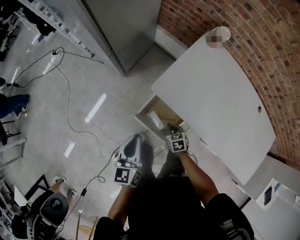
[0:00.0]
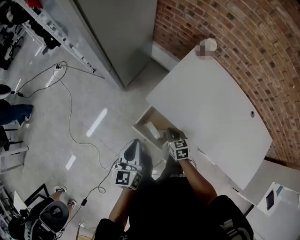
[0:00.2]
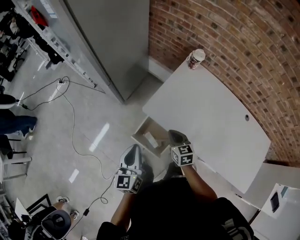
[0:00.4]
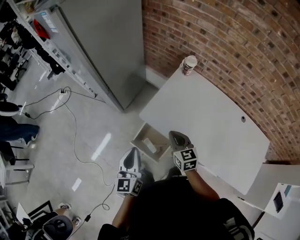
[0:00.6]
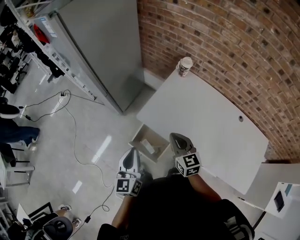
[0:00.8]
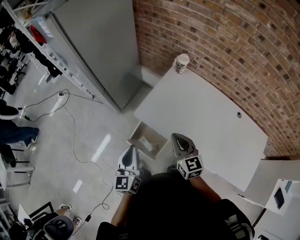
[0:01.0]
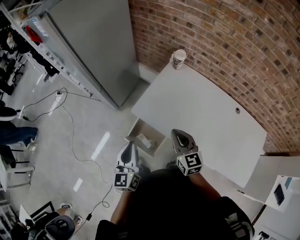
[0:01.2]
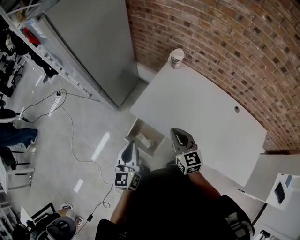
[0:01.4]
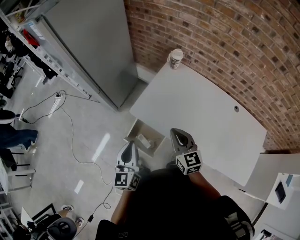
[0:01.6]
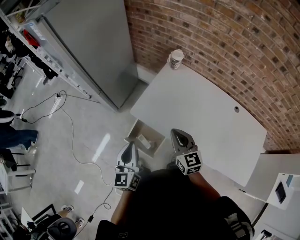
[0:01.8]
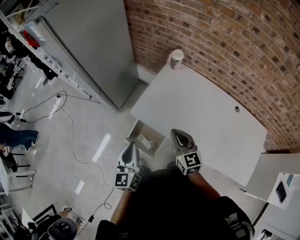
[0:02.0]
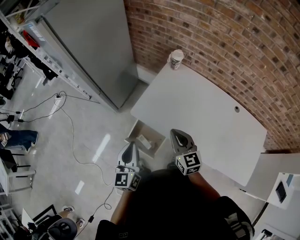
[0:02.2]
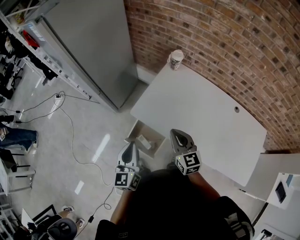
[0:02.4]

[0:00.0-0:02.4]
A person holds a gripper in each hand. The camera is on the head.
0:00.0 to 0:01.2: The right gripper shifts some 35 cm upward, and tilts its fingers approximately 40 degrees upward. The left gripper shifts approximately 15 cm upward and to the right.
0:01.2 to 0:02.4: The two grippers keep their place.

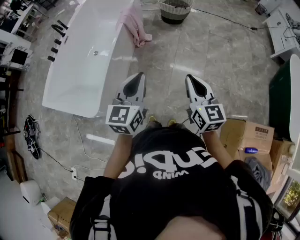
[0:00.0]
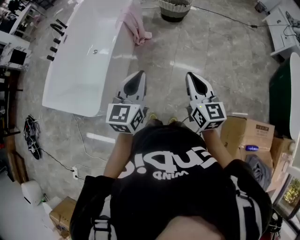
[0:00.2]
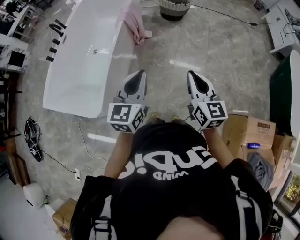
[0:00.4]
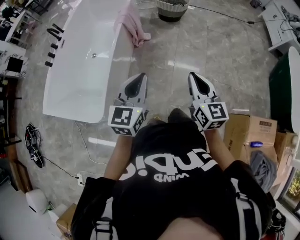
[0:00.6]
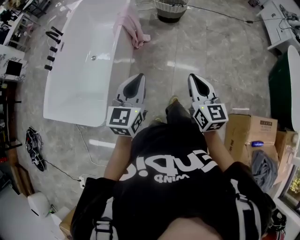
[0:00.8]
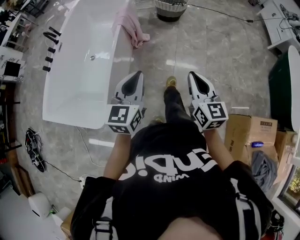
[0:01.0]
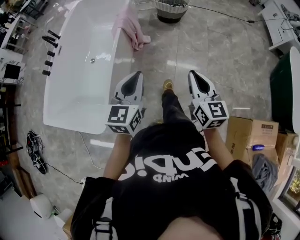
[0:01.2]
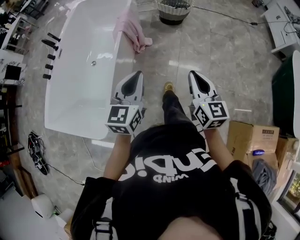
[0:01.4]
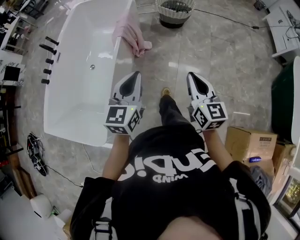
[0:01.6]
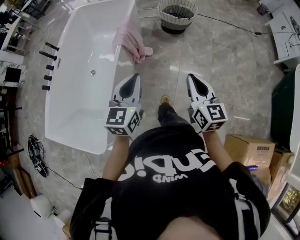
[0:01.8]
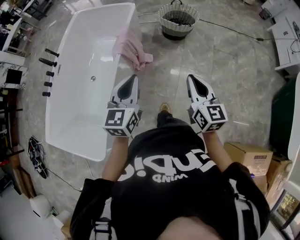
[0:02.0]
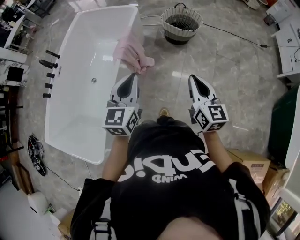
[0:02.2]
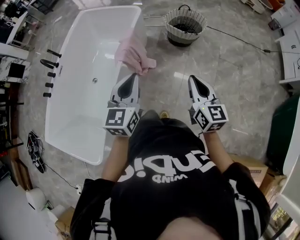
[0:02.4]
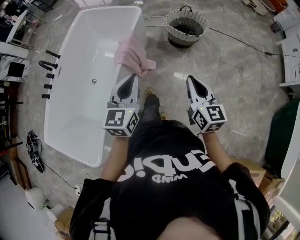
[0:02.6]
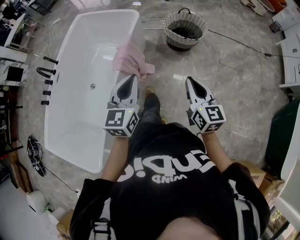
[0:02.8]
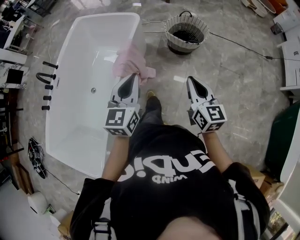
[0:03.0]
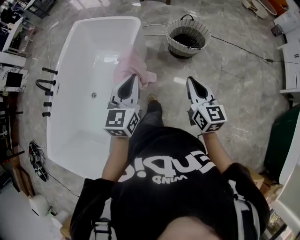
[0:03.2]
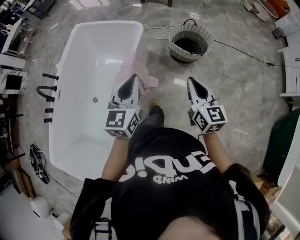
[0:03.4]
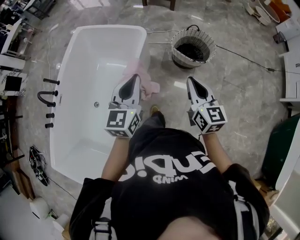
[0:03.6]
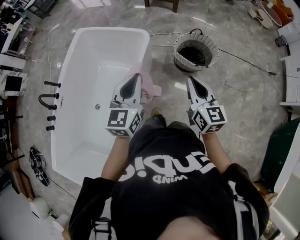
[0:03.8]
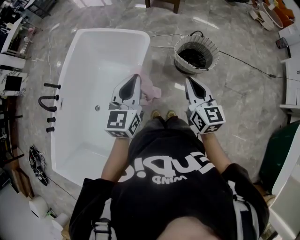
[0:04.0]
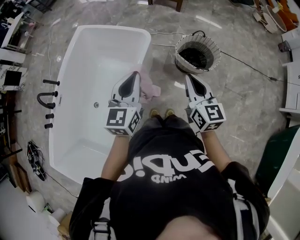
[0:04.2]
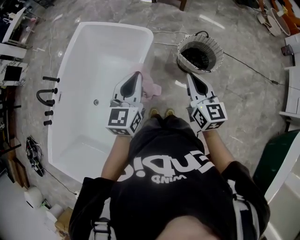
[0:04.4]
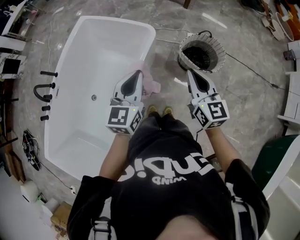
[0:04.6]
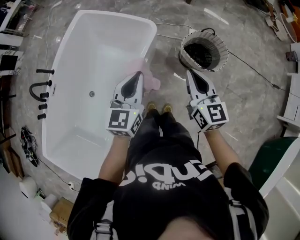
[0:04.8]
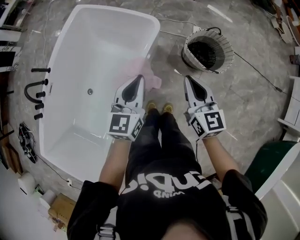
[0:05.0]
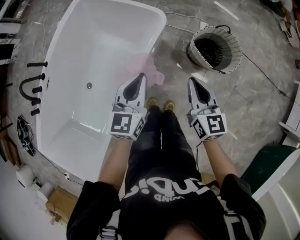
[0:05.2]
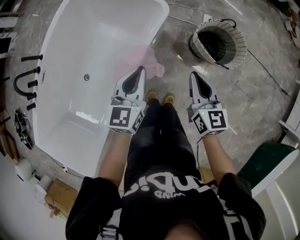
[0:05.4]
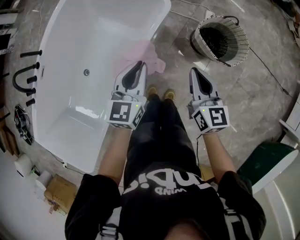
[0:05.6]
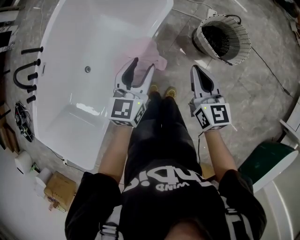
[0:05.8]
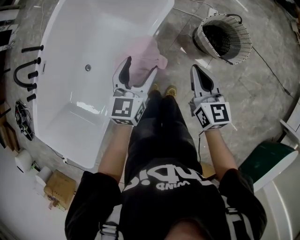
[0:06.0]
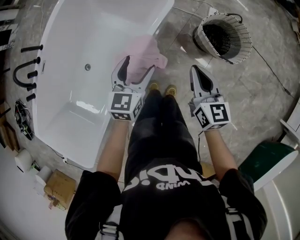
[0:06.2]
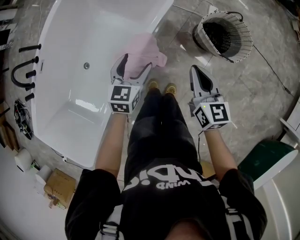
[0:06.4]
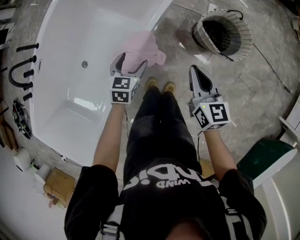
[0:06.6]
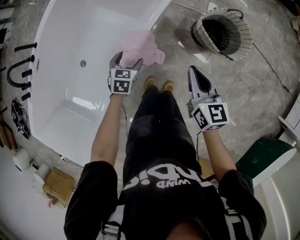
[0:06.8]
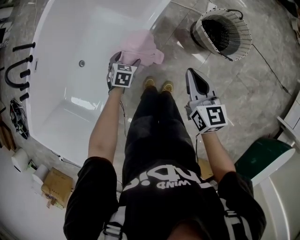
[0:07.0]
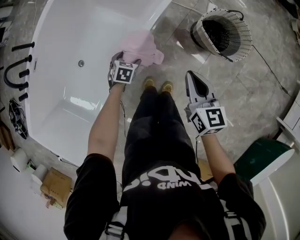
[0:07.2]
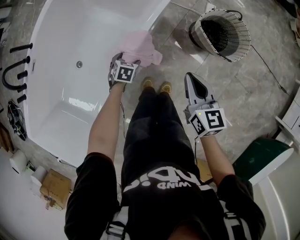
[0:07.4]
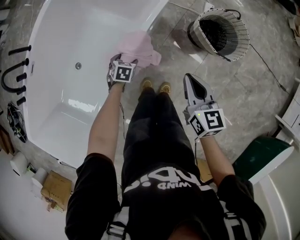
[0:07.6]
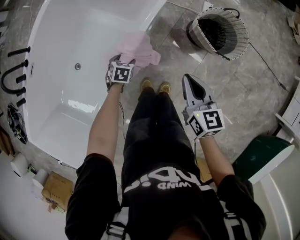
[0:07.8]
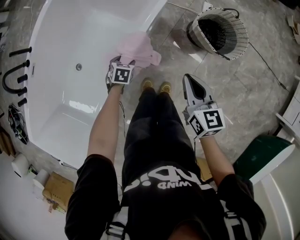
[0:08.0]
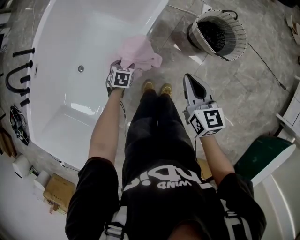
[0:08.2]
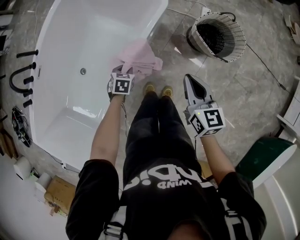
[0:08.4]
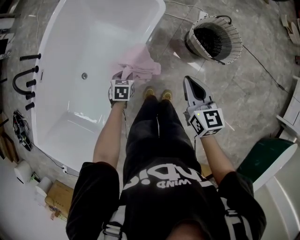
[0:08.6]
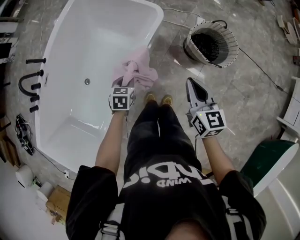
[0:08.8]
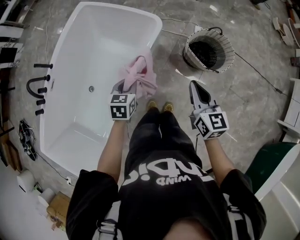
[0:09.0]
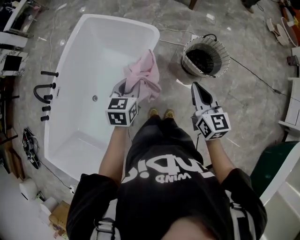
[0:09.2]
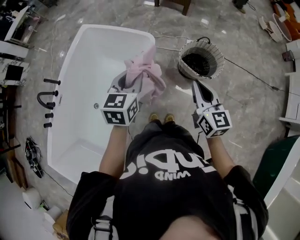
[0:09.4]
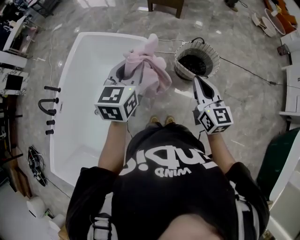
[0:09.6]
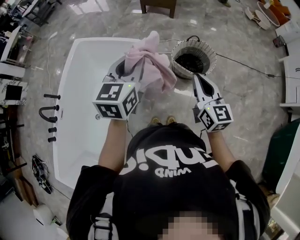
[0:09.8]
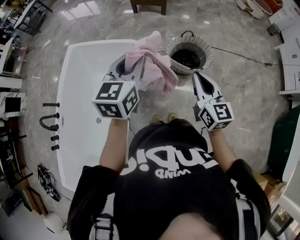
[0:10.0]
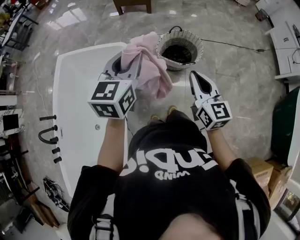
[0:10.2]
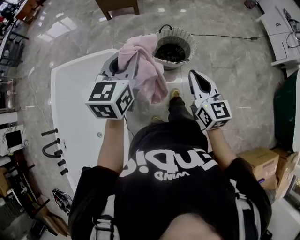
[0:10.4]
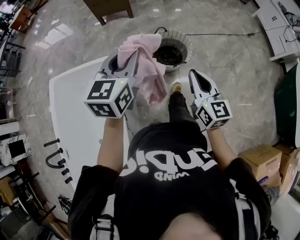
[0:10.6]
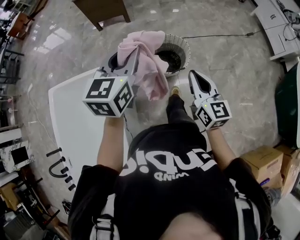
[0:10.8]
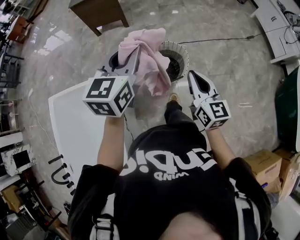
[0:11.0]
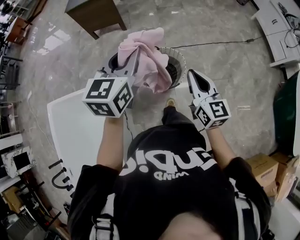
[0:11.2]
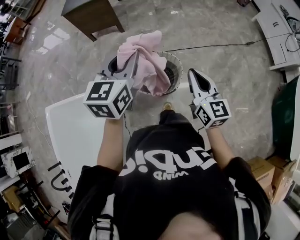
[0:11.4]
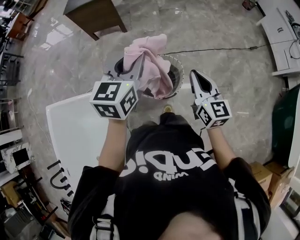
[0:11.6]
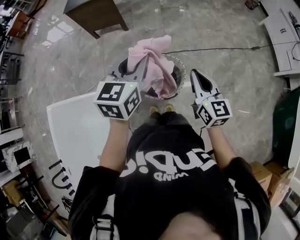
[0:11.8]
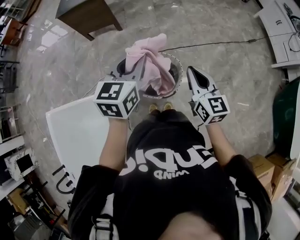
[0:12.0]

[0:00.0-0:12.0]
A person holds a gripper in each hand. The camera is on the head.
0:00.0 to 0:01.6: Both grippers travel together forward, some 20 cm.
0:01.6 to 0:03.0: The grippers both shift forward by about 35 cm.
0:03.0 to 0:04.4: The grippers both shift forward by roughly 30 cm.
0:04.4 to 0:06.0: The right gripper moves downward and forward, some 20 cm. Meanwhile the left gripper moves downward, some 20 cm, and opens.
0:06.0 to 0:07.6: The right gripper travels downward by some 5 cm; the left gripper goes some 30 cm downward, and tilts its fingers approximately 40 degrees downward.
0:07.6 to 0:09.0: The right gripper is displaced upward by roughly 15 cm. The left gripper goes about 30 cm upward, swivels roughly 20 degrees, and closes.
0:09.0 to 0:10.4: The left gripper moves upward, about 30 cm, and rotates about 40 degrees. The right gripper changes place by some 15 cm, and turns by approximately 30 degrees.
0:10.4 to 0:12.0: The right gripper heads forward, covering roughly 35 cm. Meanwhile the left gripper heads forward and to the right, covering approximately 40 cm.

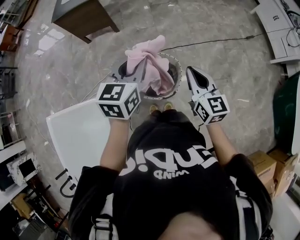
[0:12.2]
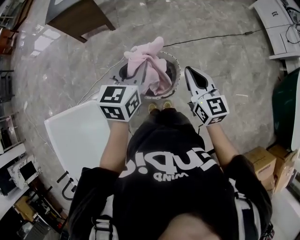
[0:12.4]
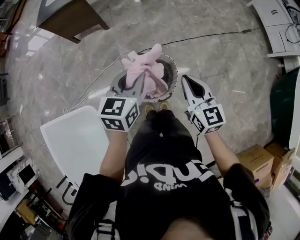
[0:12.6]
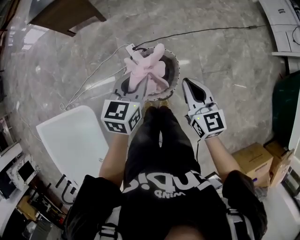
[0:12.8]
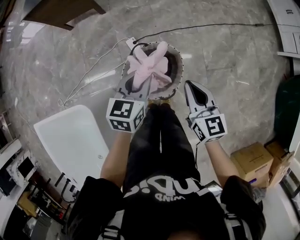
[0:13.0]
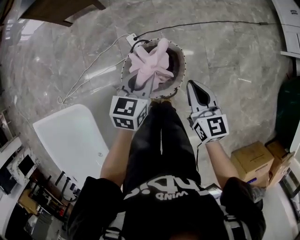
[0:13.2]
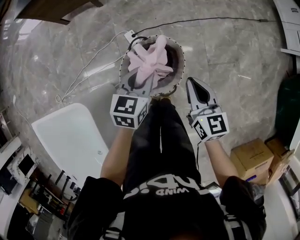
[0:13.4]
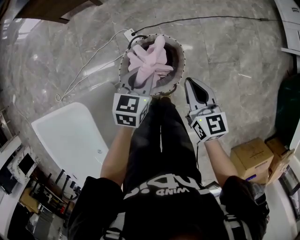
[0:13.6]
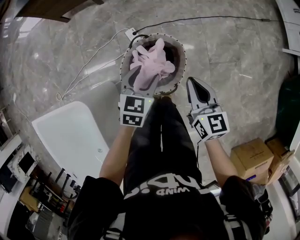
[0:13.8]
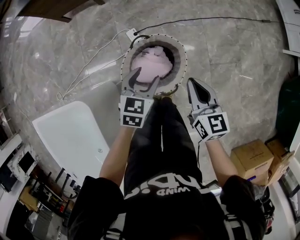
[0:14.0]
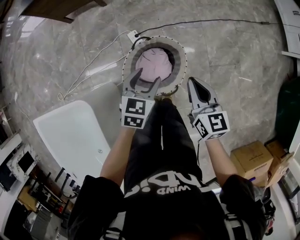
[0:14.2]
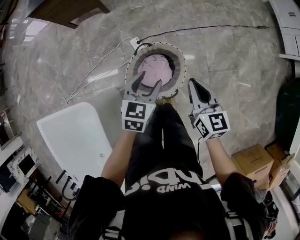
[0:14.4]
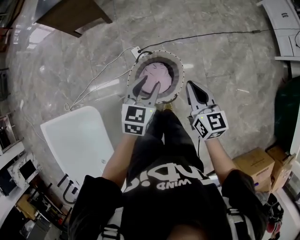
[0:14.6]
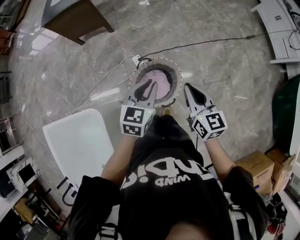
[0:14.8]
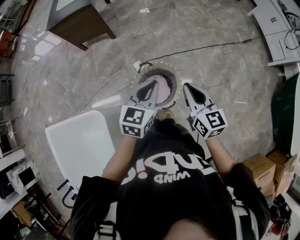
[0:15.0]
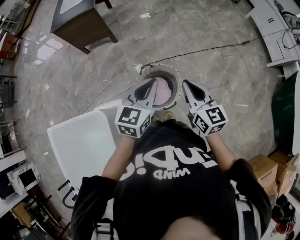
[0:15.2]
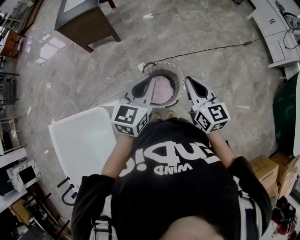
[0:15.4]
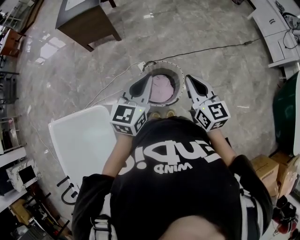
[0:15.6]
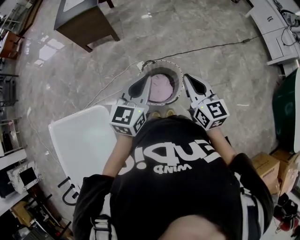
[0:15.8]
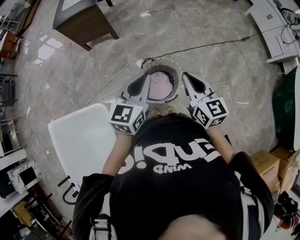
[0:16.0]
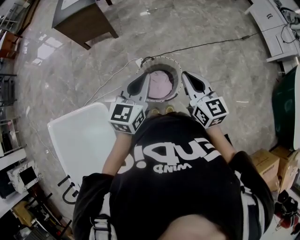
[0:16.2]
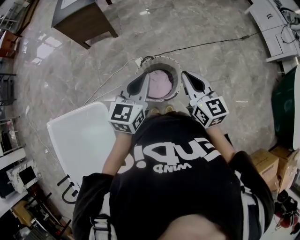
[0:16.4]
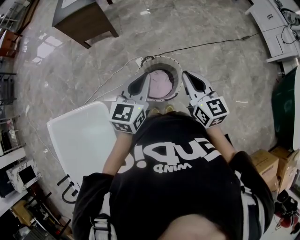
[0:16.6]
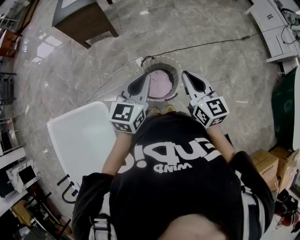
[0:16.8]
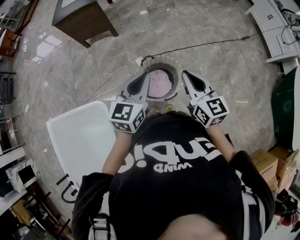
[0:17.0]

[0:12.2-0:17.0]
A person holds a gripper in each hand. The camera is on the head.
0:12.2 to 0:13.8: The right gripper travels downward by roughly 20 cm, while the left gripper is displaced downward by approximately 30 cm, swivels roughly 20 degrees, and opens.
0:13.8 to 0:15.4: Both grippers move upward, about 25 cm. The left gripper changes its angle by about 30 degrees, and closes up.
0:15.4 to 0:17.0: The grippers make only small movements.

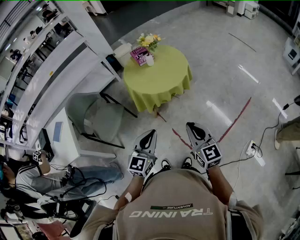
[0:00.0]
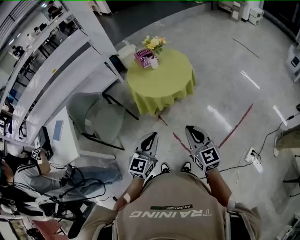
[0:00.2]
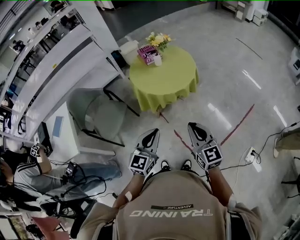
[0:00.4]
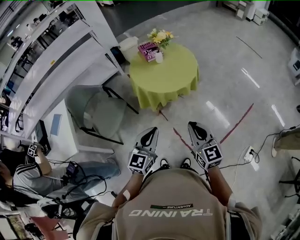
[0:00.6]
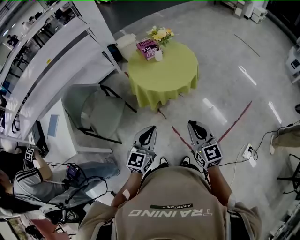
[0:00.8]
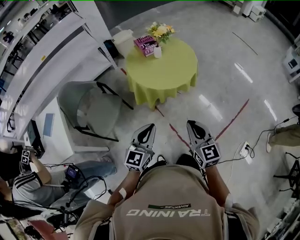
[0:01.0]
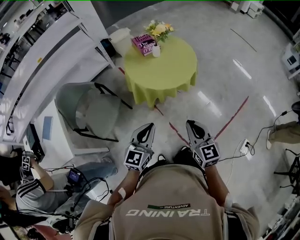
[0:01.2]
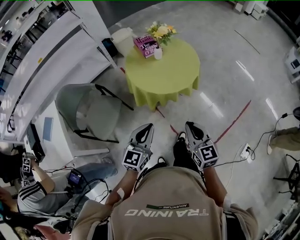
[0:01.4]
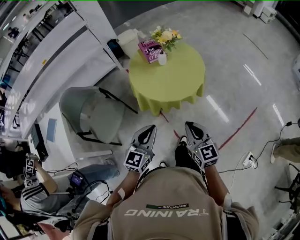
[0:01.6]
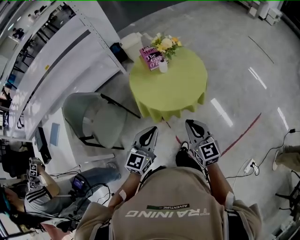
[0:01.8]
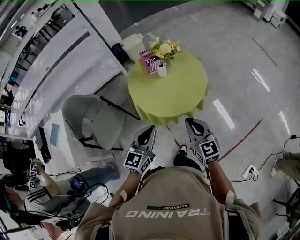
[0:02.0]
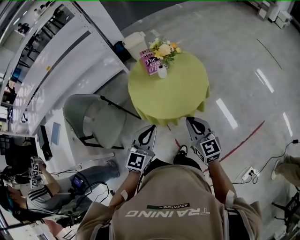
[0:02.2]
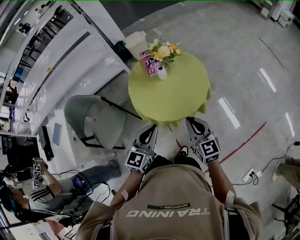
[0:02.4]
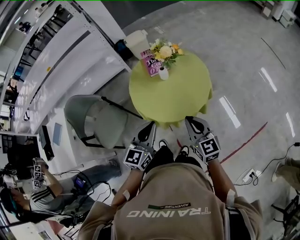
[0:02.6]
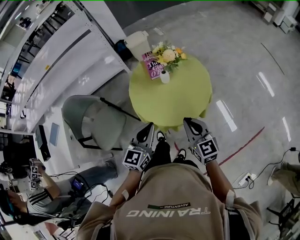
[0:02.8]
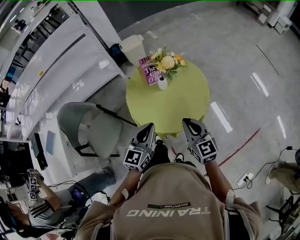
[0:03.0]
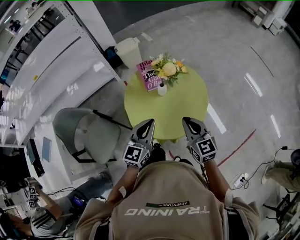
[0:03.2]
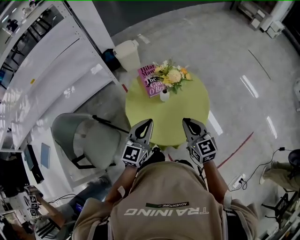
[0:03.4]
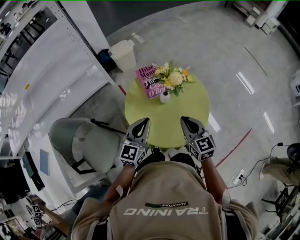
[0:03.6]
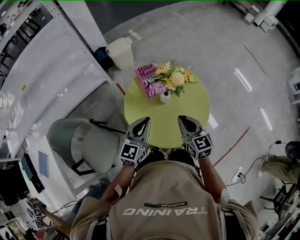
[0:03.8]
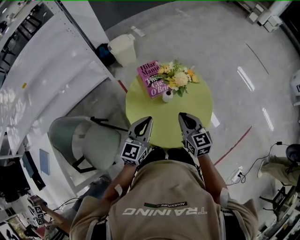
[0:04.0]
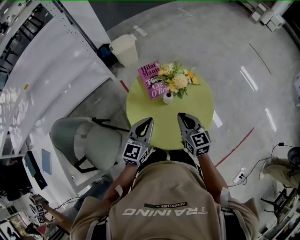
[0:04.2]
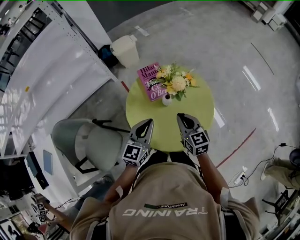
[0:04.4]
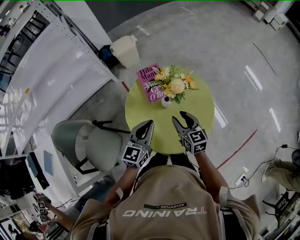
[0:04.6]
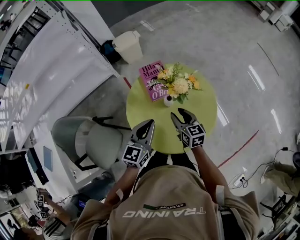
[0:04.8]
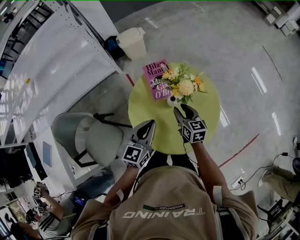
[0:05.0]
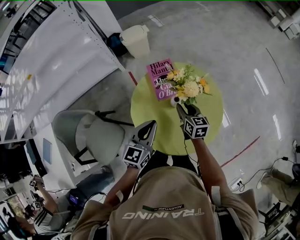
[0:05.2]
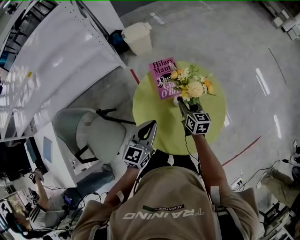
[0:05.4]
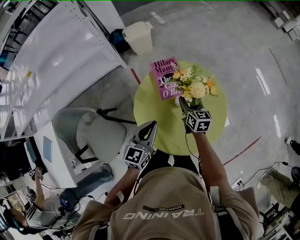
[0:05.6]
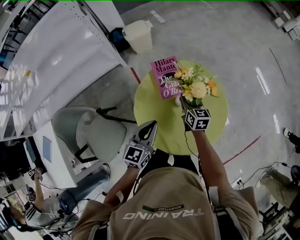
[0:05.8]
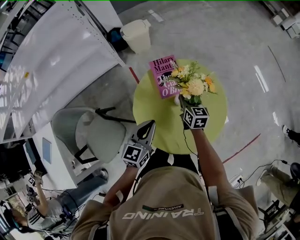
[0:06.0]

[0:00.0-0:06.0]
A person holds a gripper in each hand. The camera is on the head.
0:00.0 to 0:01.6: Both grippers travel together forward and to the left, roughly 20 cm.
0:01.6 to 0:03.0: Both grippers travel together forward, about 25 cm.
0:03.0 to 0:04.4: The left gripper is displaced forward by roughly 15 cm. The right gripper goes roughly 20 cm forward and to the left.
0:04.4 to 0:06.0: The left gripper goes roughly 5 cm downward; the right gripper moves forward and downward, some 20 cm, and opens, then closes again.
